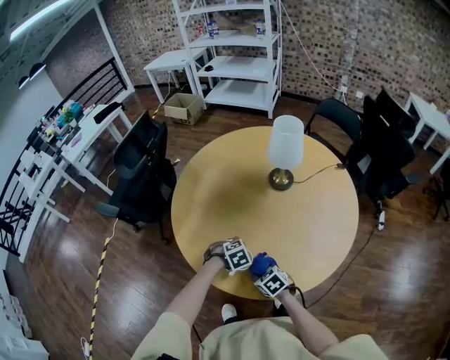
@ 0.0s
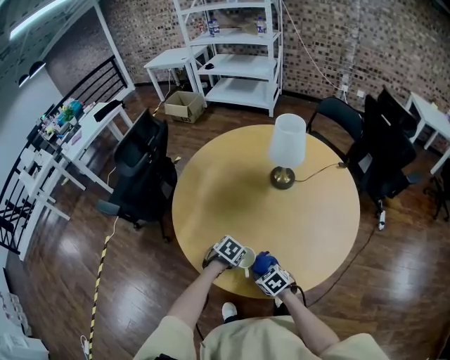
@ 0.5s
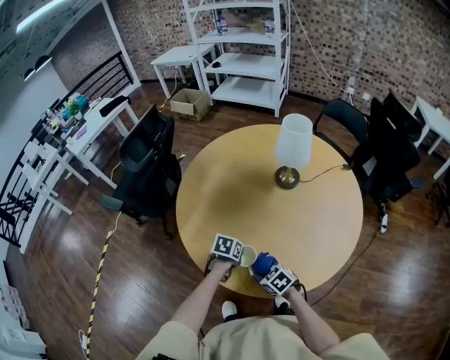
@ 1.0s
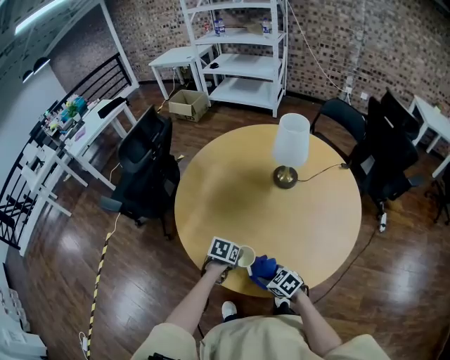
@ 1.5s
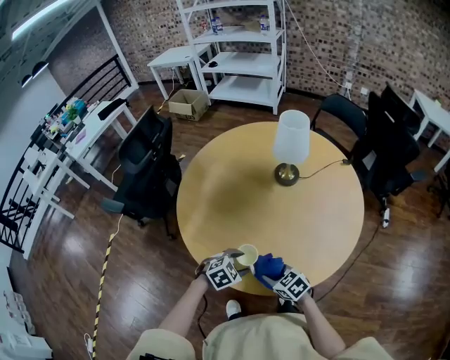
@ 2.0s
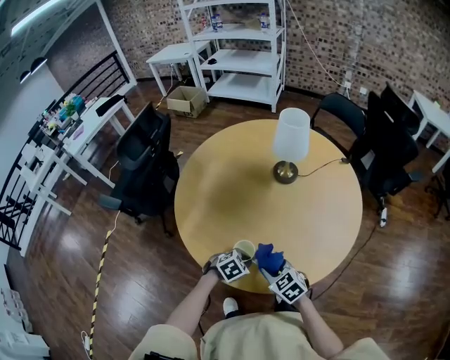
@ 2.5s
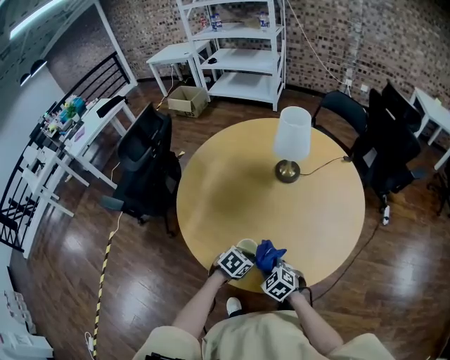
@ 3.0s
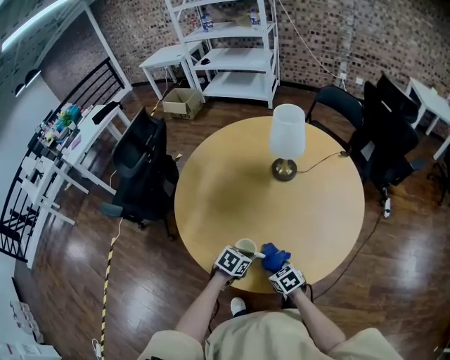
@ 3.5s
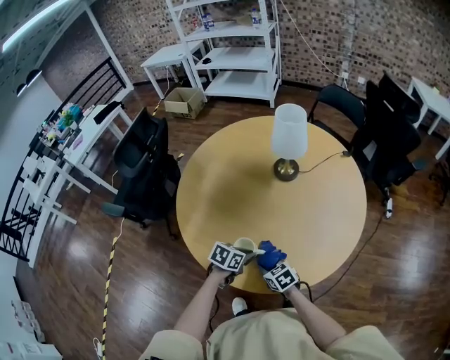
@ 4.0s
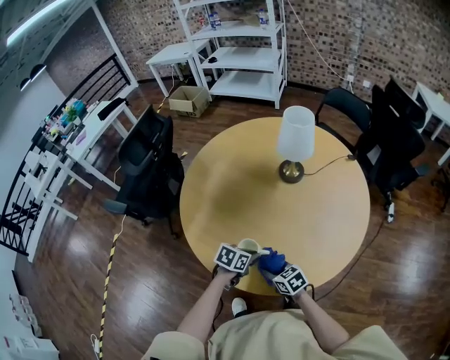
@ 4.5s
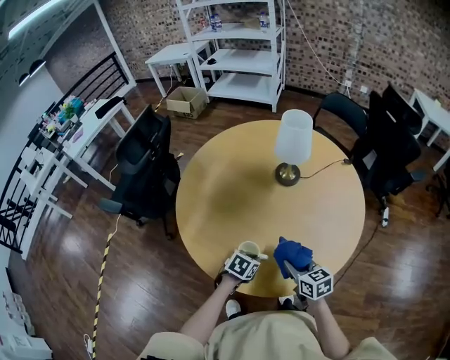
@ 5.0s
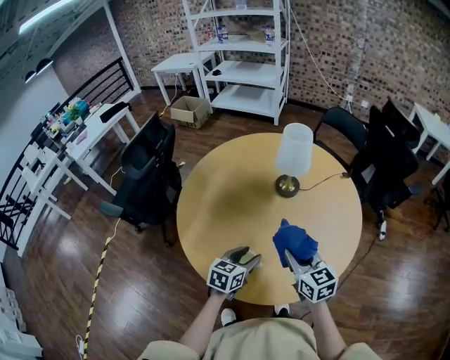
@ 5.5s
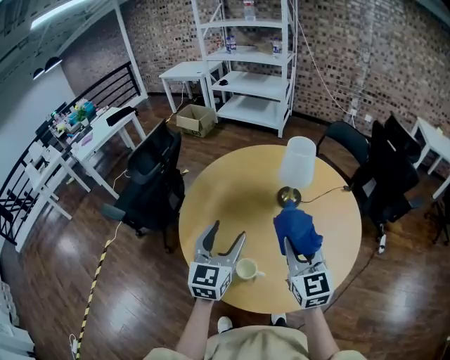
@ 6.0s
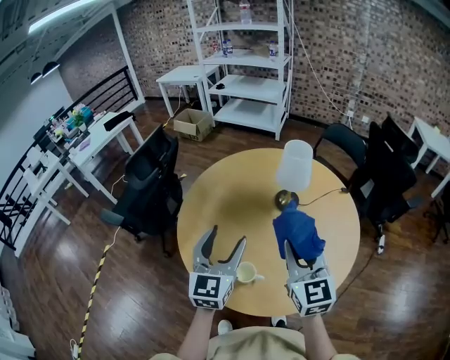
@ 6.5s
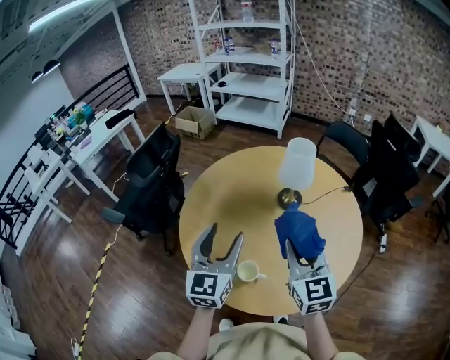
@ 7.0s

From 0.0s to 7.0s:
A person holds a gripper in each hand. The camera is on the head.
From 0.0s to 2.0s: The right gripper ends up approximately 5 cm from where it was; the left gripper is displaced backward by approximately 5 cm.
From 2.0s to 3.5s: The right gripper moves downward, approximately 5 cm. The left gripper changes its angle by some 30 degrees, and closes up.
From 3.5s to 5.0s: The right gripper is displaced upward by approximately 10 cm, and changes its angle by some 20 degrees.
From 5.0s to 7.0s: The two grippers go some 30 cm upward. The left gripper angles its fingers upward, by approximately 60 degrees, and opens up; the right gripper changes its angle by some 40 degrees.

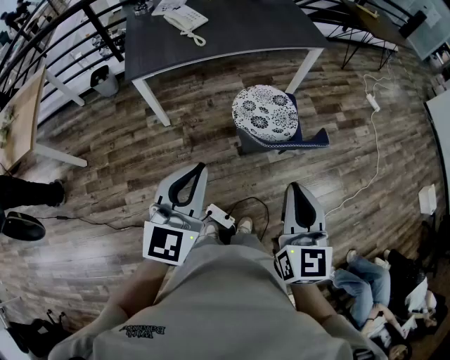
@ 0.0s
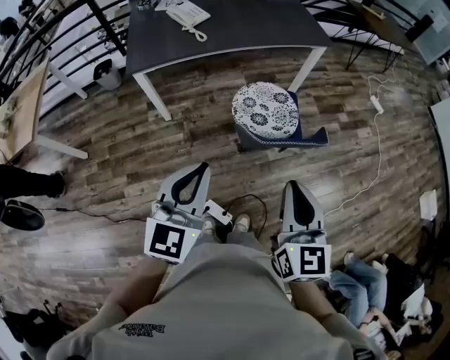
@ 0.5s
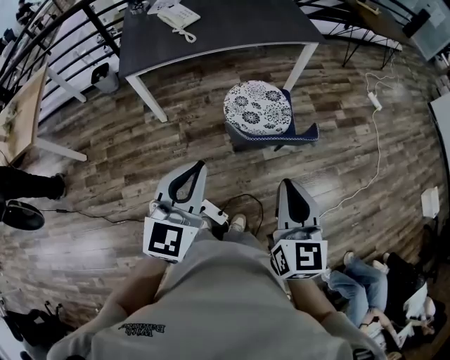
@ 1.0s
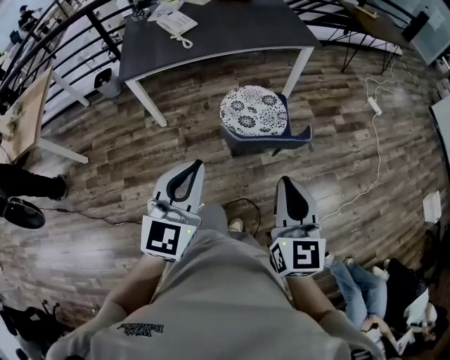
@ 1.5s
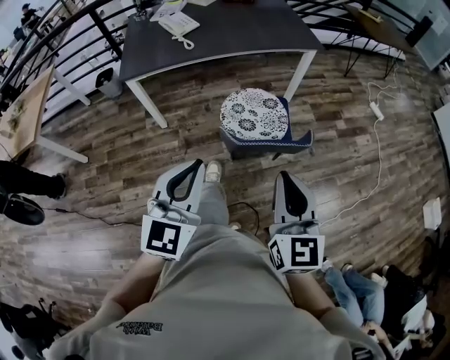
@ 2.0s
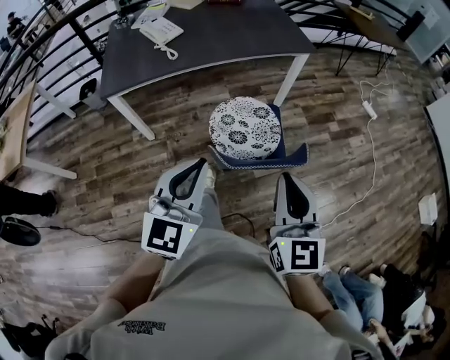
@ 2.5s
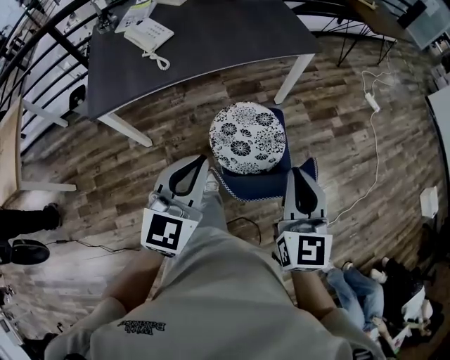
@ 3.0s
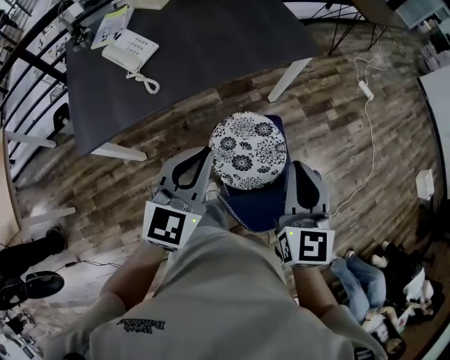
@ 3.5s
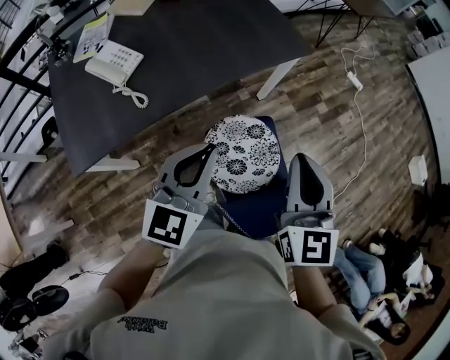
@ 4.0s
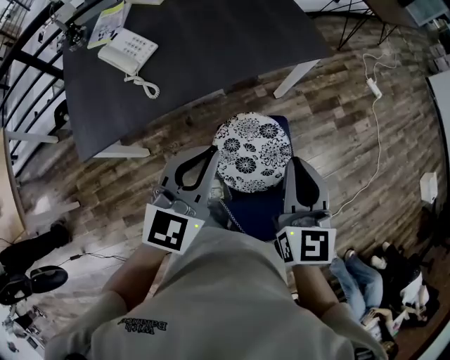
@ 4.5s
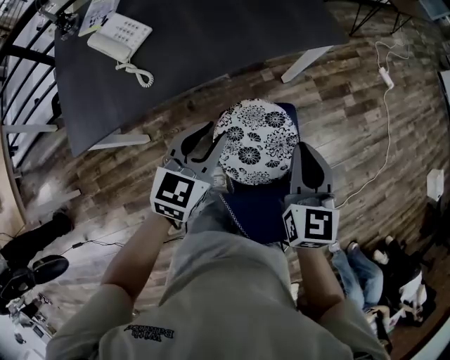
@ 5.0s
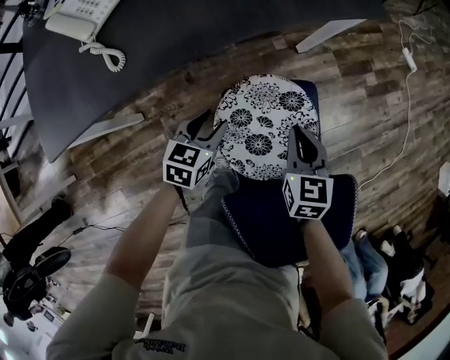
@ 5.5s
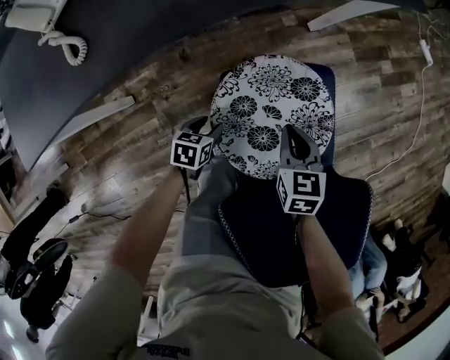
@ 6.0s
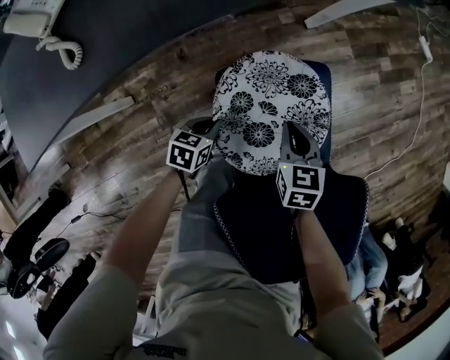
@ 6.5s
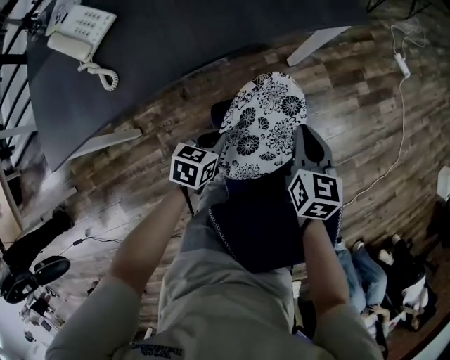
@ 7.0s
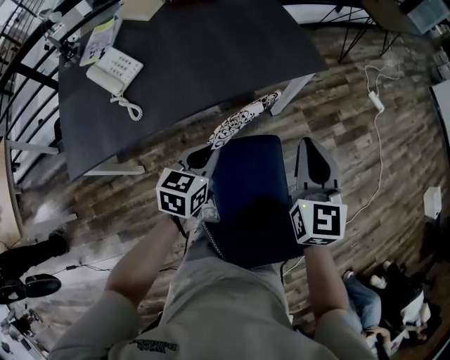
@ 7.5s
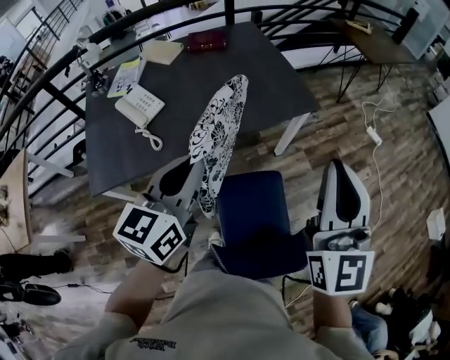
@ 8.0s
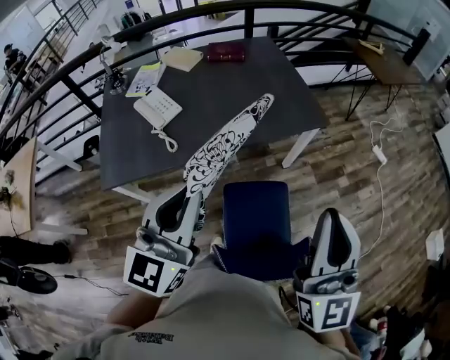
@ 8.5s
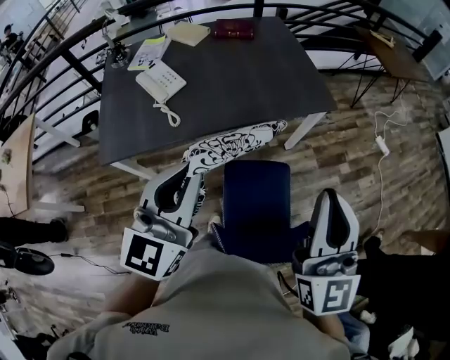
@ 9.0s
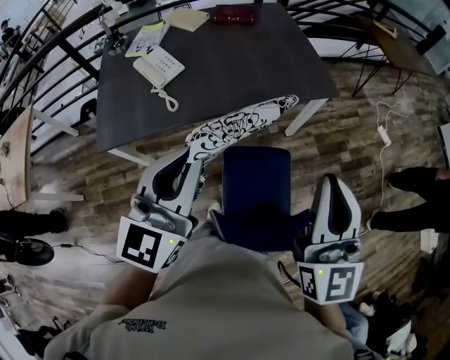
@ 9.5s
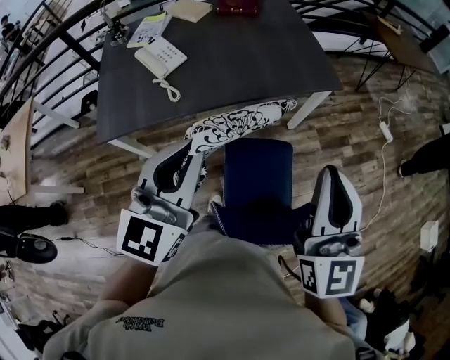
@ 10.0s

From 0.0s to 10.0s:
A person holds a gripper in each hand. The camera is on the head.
From 0.0s to 2.0s: Both grippers travel together to the right, some 10 cm.
From 2.0s to 4.0s: The two grippers travel together, forward, approximately 50 cm. The left gripper changes its angle by some 20 degrees, while the right gripper turns by some 20 degrees.
From 4.0s to 6.0s: The grippers both shift downward by roughly 60 cm. The left gripper points its fingers roughly 50 degrees further downward, and opens; the right gripper points its fingers some 40 degrees further downward.
From 6.0s to 8.0s: Both grippers travel together upward, about 70 cm. The left gripper angles its fingers upward, by about 50 degrees, and closes up. The right gripper tilts its fingers about 60 degrees upward.
From 8.0s to 10.0s: The right gripper heads backward and to the left, covering approximately 10 cm. The left gripper goes some 10 cm backward.

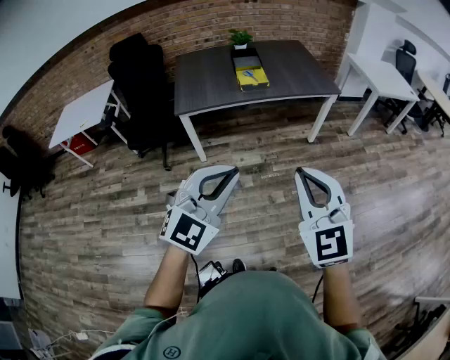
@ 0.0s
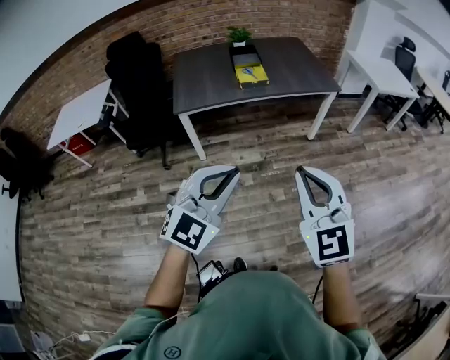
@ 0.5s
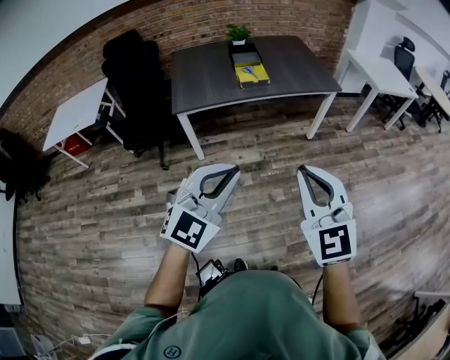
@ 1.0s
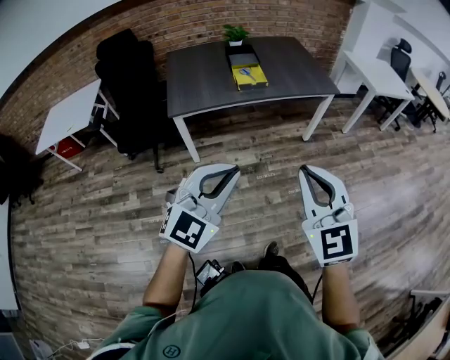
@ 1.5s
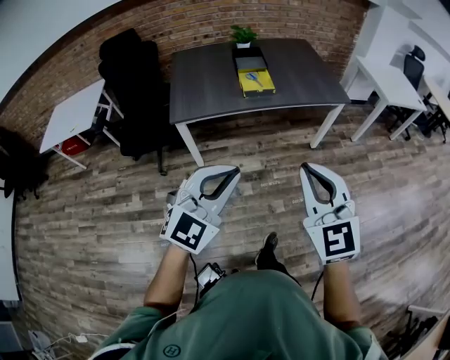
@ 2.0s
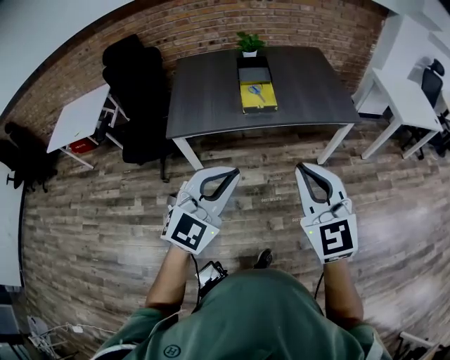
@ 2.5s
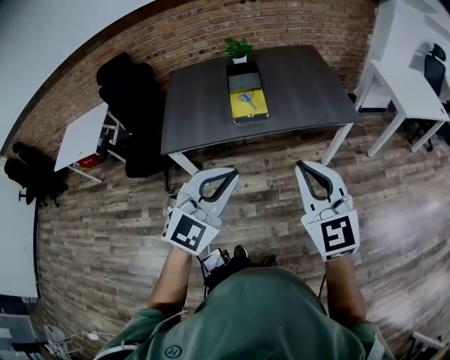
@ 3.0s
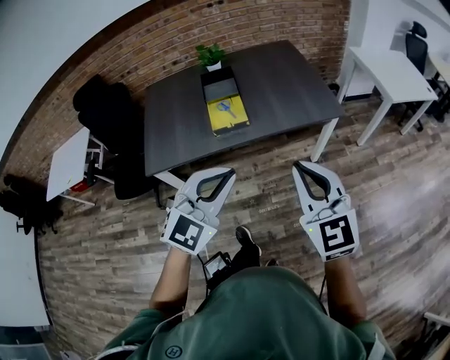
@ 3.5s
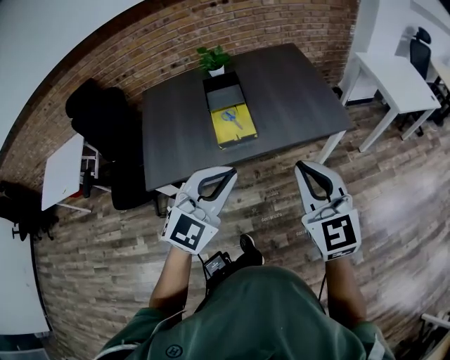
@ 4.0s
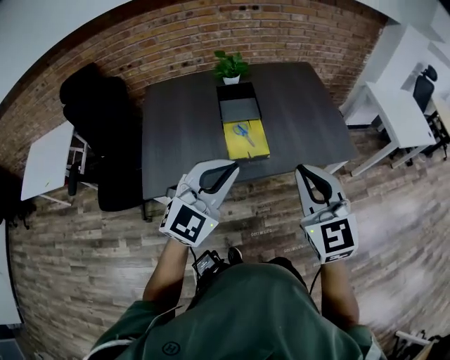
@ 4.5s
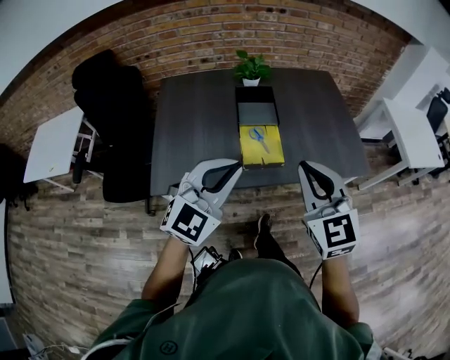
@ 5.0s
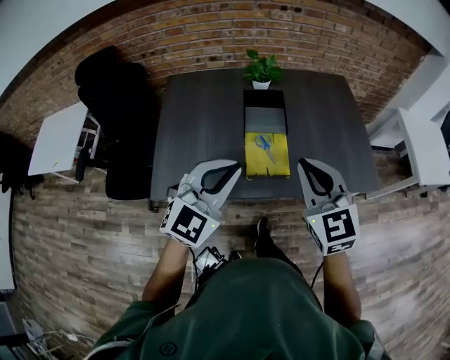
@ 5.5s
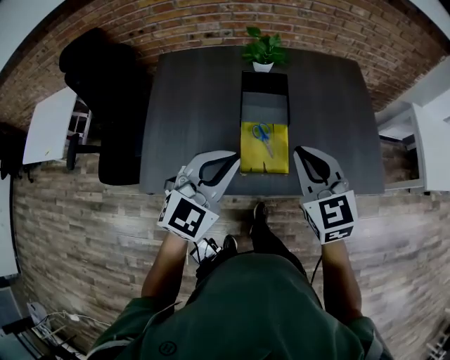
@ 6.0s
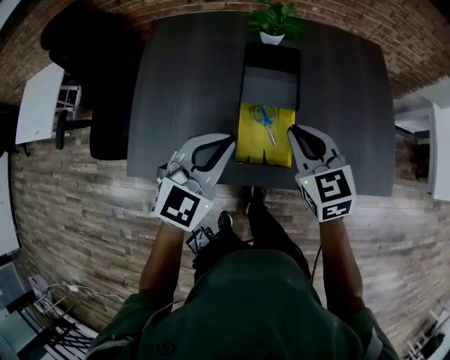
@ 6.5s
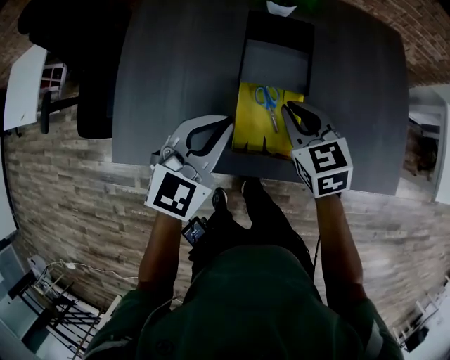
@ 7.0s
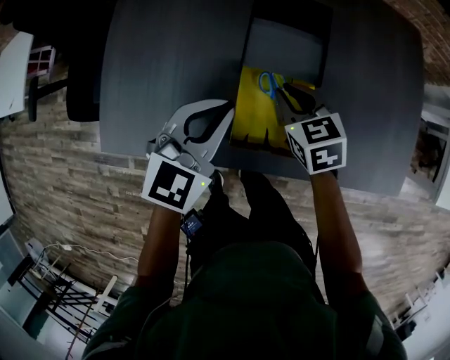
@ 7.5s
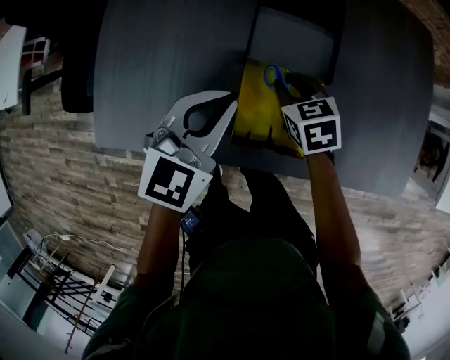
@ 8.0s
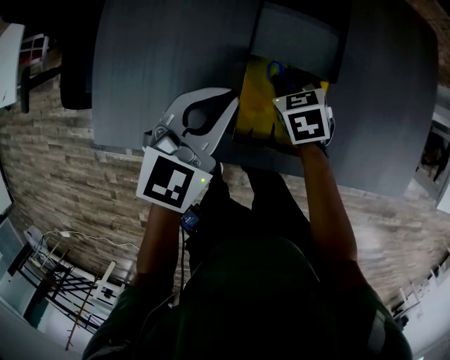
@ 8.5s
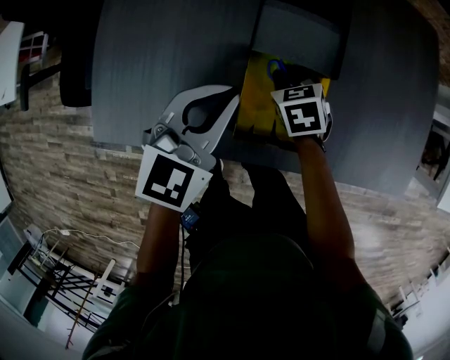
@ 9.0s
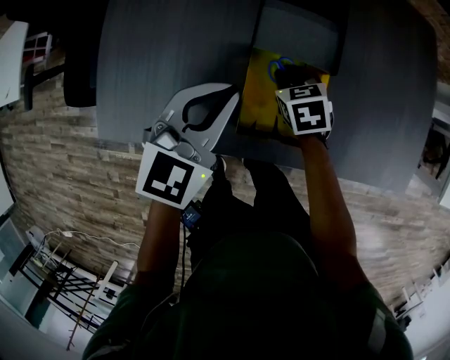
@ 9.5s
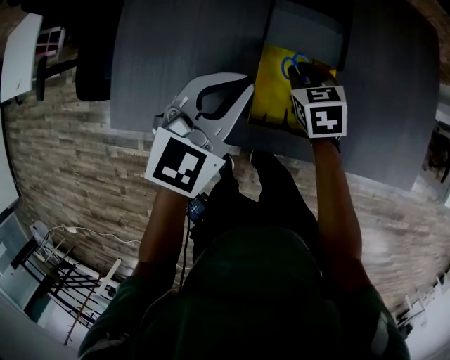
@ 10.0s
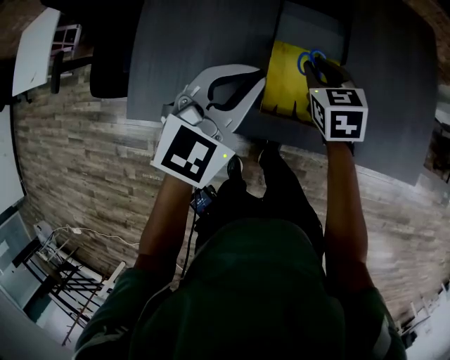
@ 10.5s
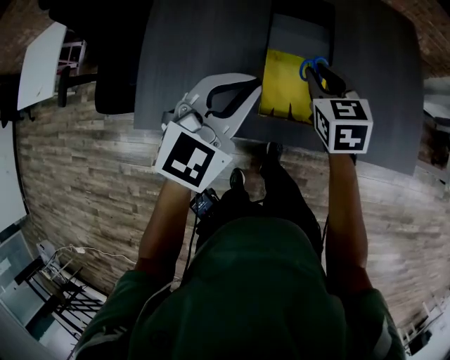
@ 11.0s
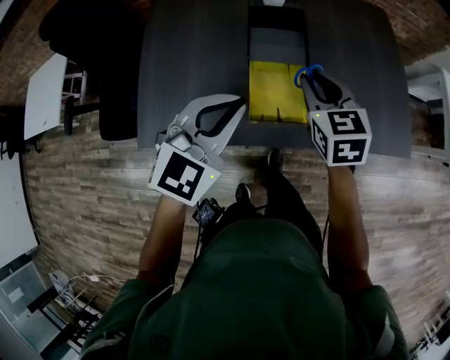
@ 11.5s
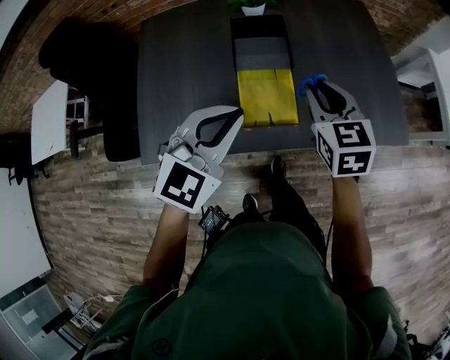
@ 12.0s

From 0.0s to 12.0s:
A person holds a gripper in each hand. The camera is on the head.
From 0.0s to 2.0s: Both grippers travel together forward, about 15 cm.
From 2.0s to 4.0s: The two grippers go some 35 cm forward.
From 4.0s to 6.0s: The grippers both shift forward and to the left by roughly 30 cm.
From 6.0s to 8.0s: The right gripper travels downward and forward by about 35 cm, and tips its fingers downward by approximately 30 degrees; the left gripper travels downward and forward by some 25 cm, and turns by roughly 20 degrees.
From 8.0s to 10.0s: There are only small adjustments of the grippers.
From 10.0s to 12.0s: The left gripper is displaced upward, backward and to the right by about 15 cm. Meanwhile the right gripper is displaced upward, to the right and backward by about 25 cm, and swivels roughly 30 degrees.
